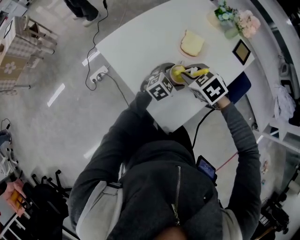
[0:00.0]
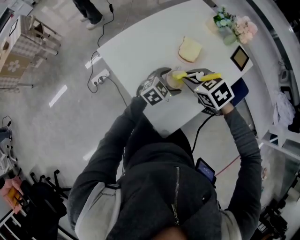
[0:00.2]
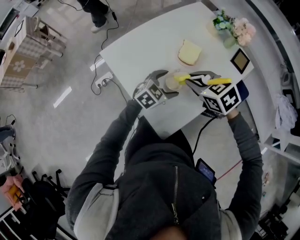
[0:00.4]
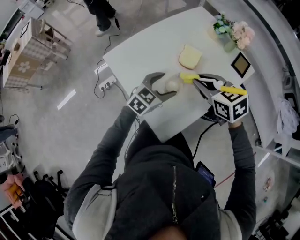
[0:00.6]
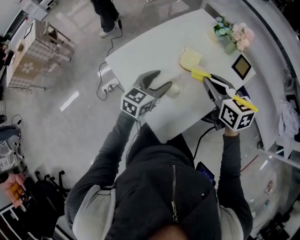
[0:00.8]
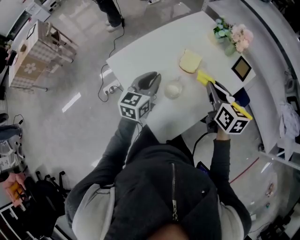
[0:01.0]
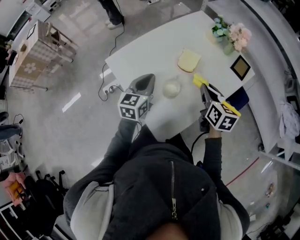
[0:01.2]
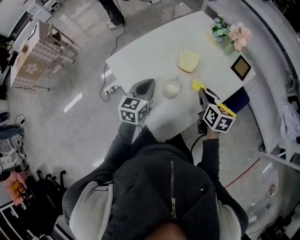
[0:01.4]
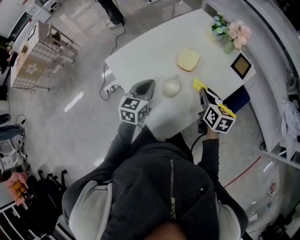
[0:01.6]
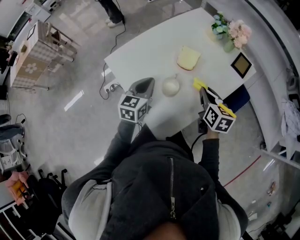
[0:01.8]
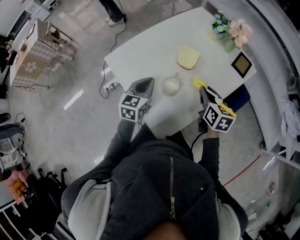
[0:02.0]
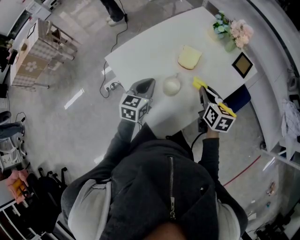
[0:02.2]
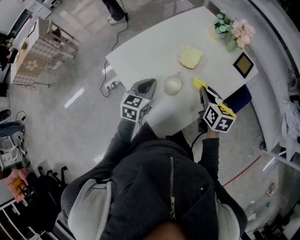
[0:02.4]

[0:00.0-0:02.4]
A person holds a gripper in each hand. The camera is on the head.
0:00.0 to 0:01.2: The left gripper is displaced upward and to the left by about 20 cm, rotates about 50 degrees, and closes its fingers, while the right gripper heads to the right and upward, covering roughly 15 cm, and points its fingers about 30 degrees further upward.
0:01.2 to 0:02.4: The grippers move only a little.

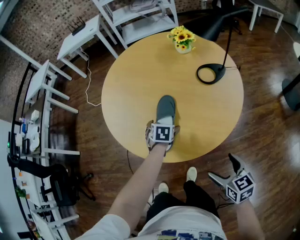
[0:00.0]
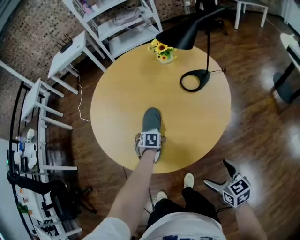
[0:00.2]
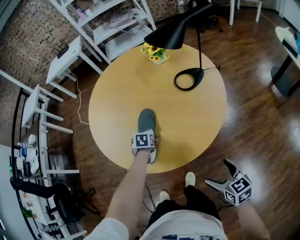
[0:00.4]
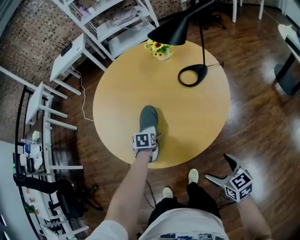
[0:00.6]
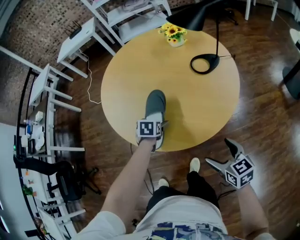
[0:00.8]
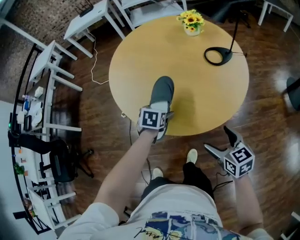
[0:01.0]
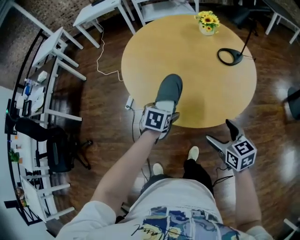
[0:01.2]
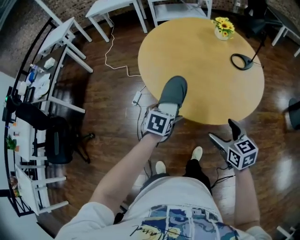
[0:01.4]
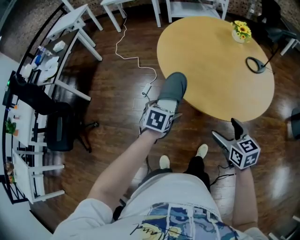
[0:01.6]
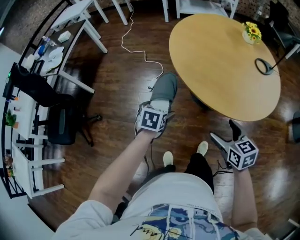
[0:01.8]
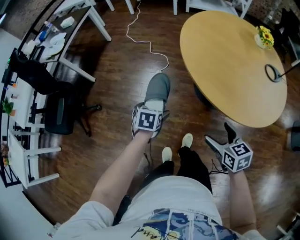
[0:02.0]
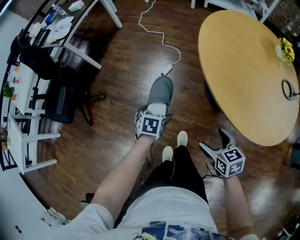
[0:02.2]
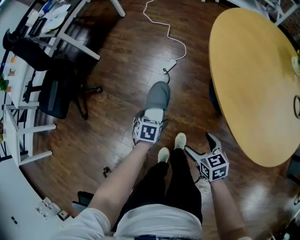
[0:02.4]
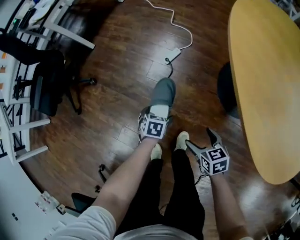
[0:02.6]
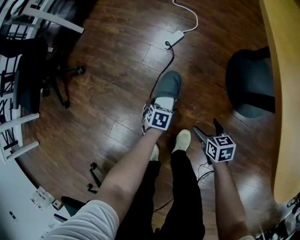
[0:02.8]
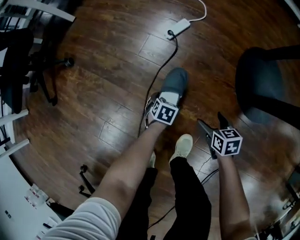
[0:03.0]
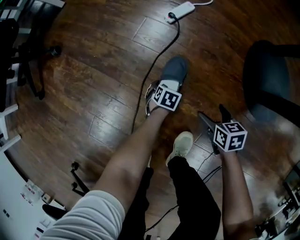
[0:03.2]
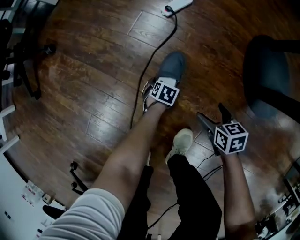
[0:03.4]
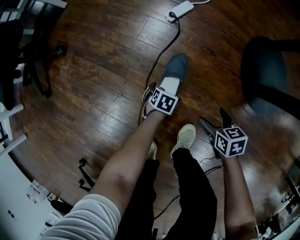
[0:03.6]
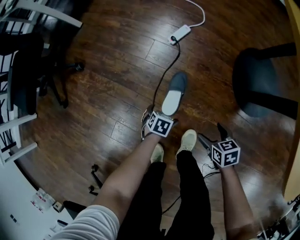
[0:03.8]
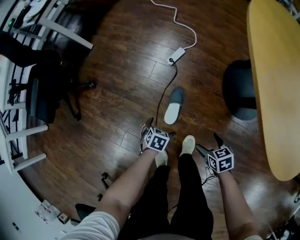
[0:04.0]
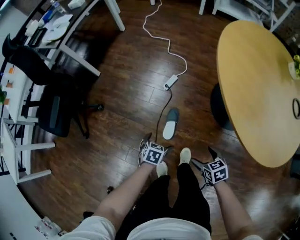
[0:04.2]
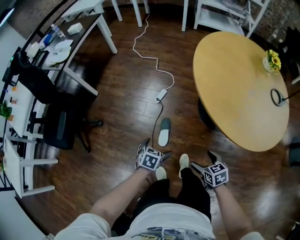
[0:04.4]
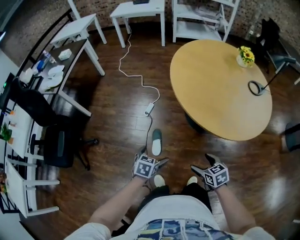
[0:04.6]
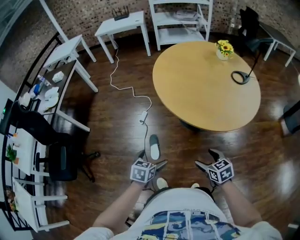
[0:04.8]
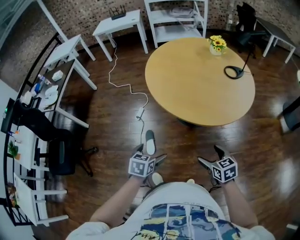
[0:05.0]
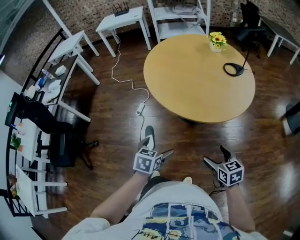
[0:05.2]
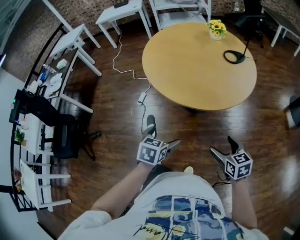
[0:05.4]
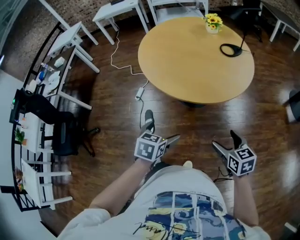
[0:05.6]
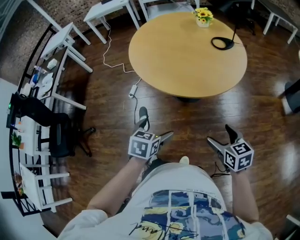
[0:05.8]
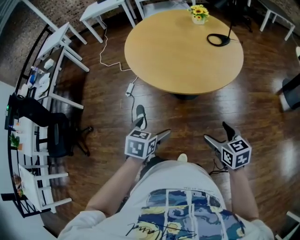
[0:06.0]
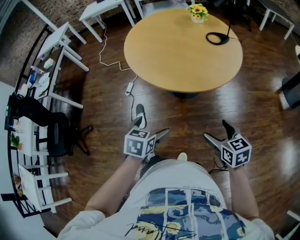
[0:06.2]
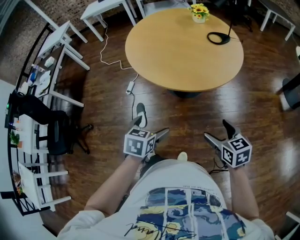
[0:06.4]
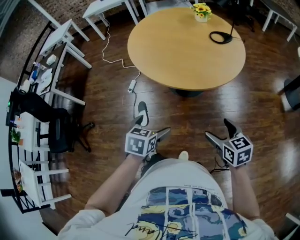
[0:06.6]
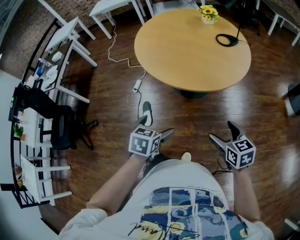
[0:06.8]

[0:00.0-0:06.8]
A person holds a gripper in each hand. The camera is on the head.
0:00.0 to 0:01.4: The left gripper moves backward, to the left and upward, some 30 cm; the right gripper is displaced to the left by some 20 cm.
0:01.4 to 0:02.8: The pair of grippers is taken roughly 40 cm. The grippers both shift downward by approximately 70 cm. The right gripper rotates approximately 30 degrees, while the left gripper rotates approximately 40 degrees.
0:02.8 to 0:04.0: The right gripper goes downward and returns, roughly 25 cm each way, while the left gripper goes downward and returns, some 30 cm each way.
0:04.0 to 0:05.4: The two grippers travel together, to the right and backward, approximately 50 cm. Both grippers move upward, roughly 50 cm. The right gripper rotates about 40 degrees. The left gripper rotates some 30 degrees.
0:05.4 to 0:06.8: The grippers stay close to where they were, moving slightly.

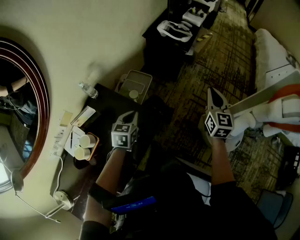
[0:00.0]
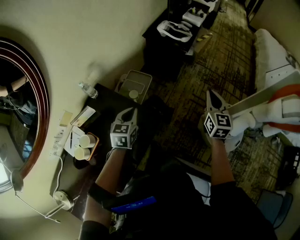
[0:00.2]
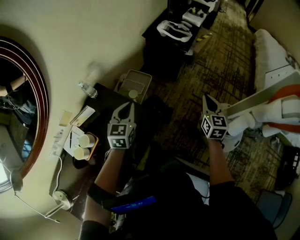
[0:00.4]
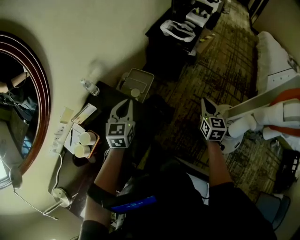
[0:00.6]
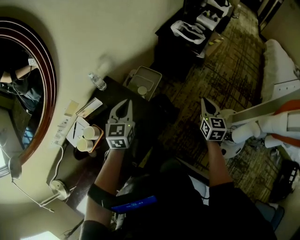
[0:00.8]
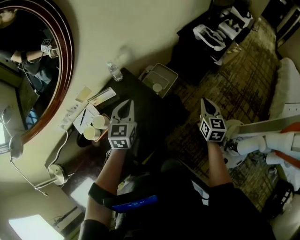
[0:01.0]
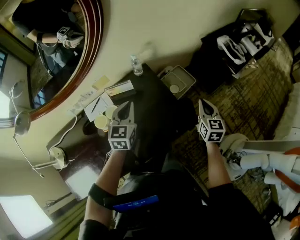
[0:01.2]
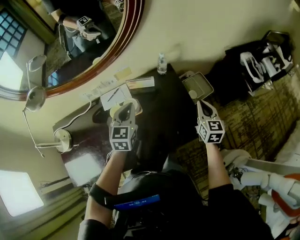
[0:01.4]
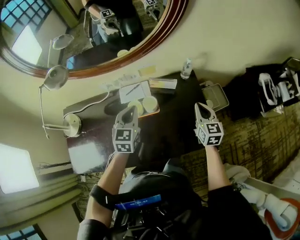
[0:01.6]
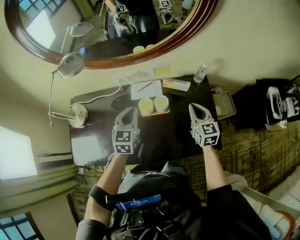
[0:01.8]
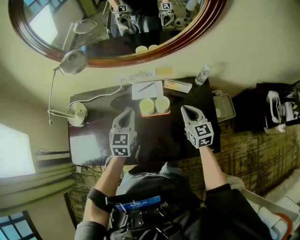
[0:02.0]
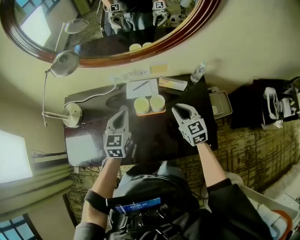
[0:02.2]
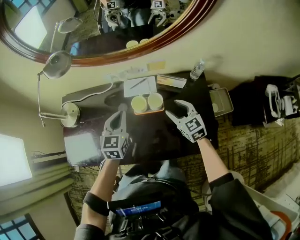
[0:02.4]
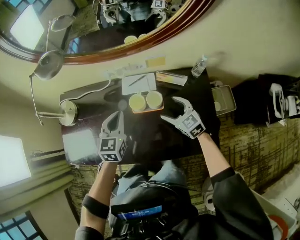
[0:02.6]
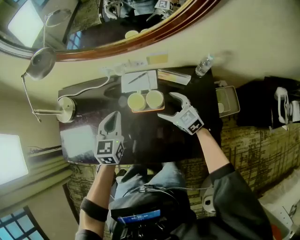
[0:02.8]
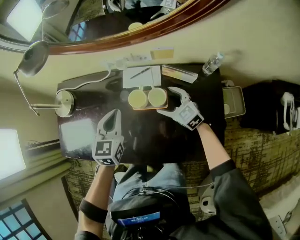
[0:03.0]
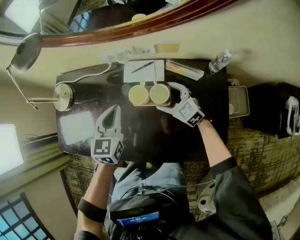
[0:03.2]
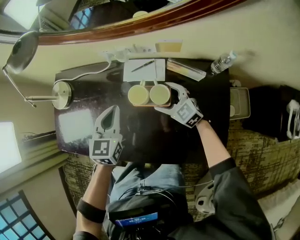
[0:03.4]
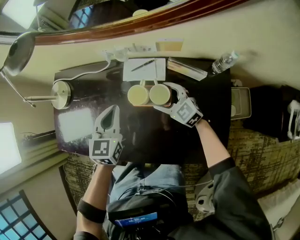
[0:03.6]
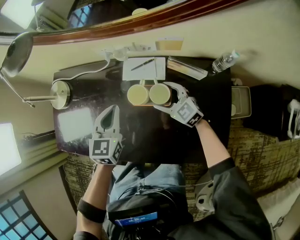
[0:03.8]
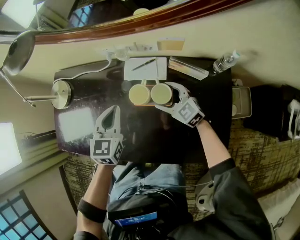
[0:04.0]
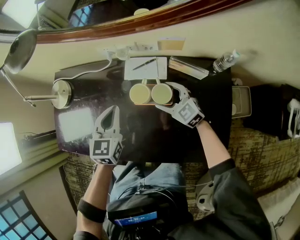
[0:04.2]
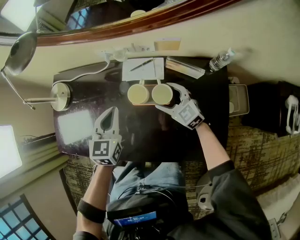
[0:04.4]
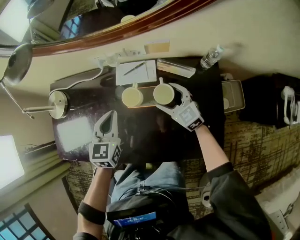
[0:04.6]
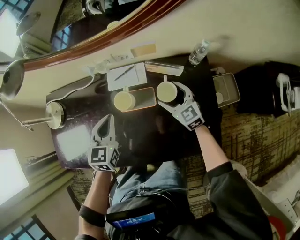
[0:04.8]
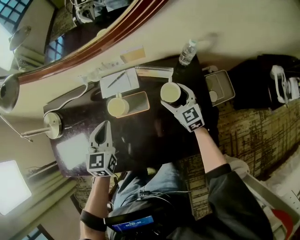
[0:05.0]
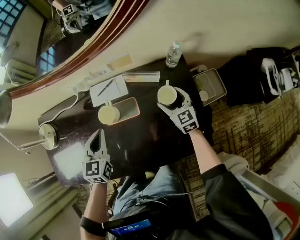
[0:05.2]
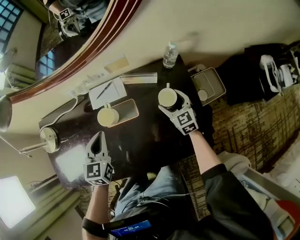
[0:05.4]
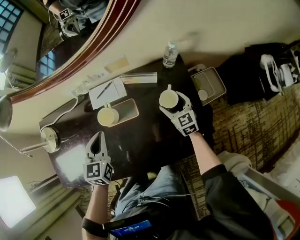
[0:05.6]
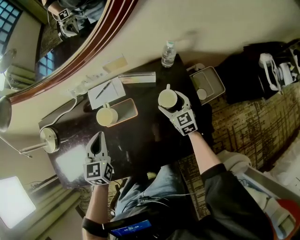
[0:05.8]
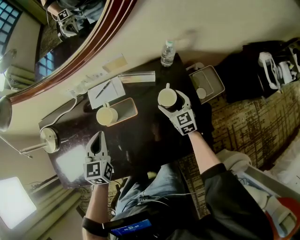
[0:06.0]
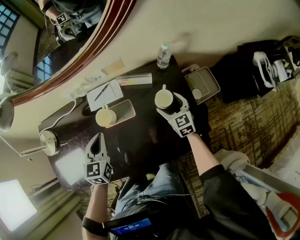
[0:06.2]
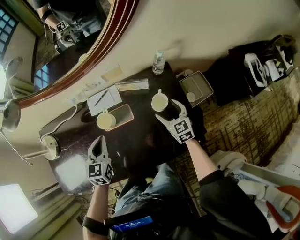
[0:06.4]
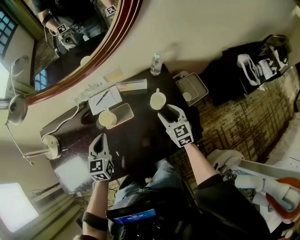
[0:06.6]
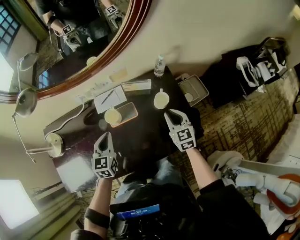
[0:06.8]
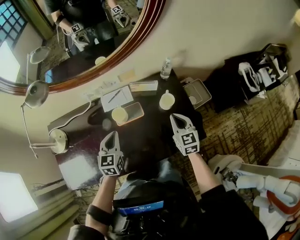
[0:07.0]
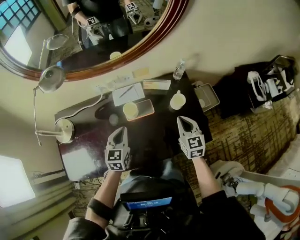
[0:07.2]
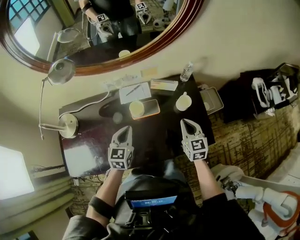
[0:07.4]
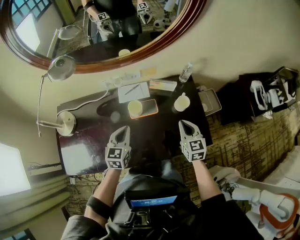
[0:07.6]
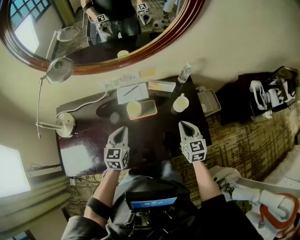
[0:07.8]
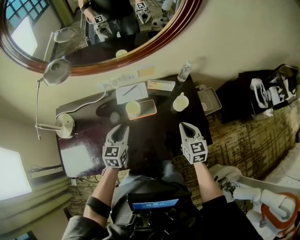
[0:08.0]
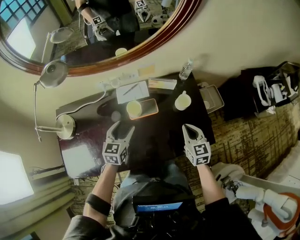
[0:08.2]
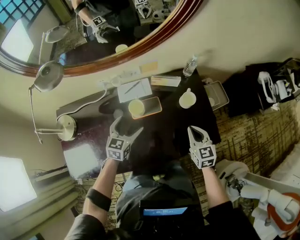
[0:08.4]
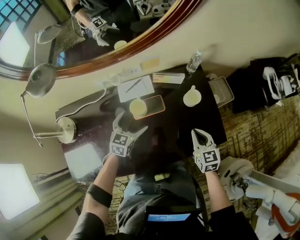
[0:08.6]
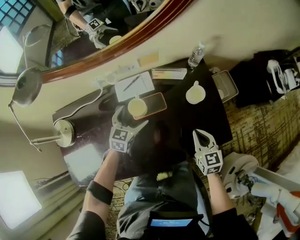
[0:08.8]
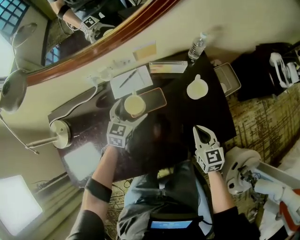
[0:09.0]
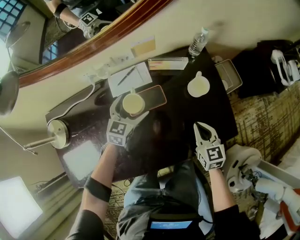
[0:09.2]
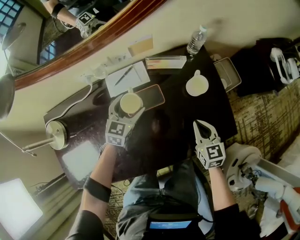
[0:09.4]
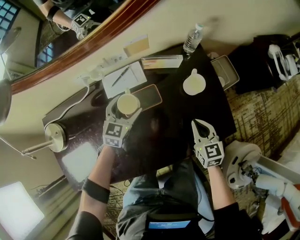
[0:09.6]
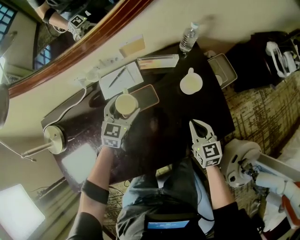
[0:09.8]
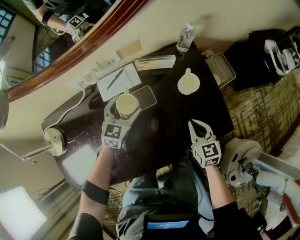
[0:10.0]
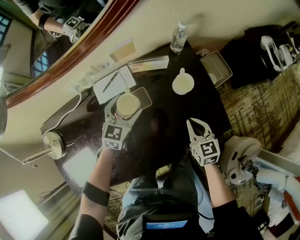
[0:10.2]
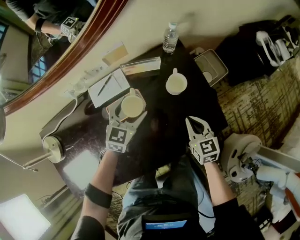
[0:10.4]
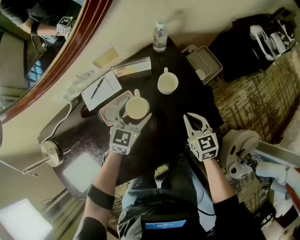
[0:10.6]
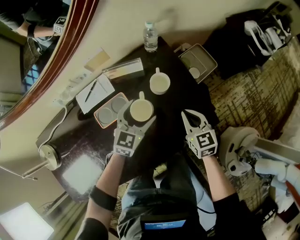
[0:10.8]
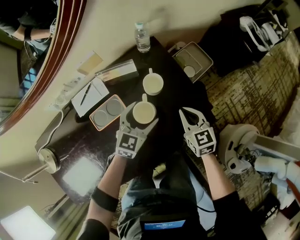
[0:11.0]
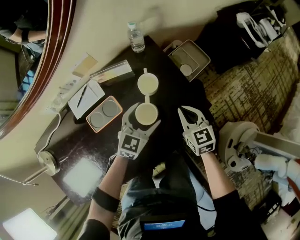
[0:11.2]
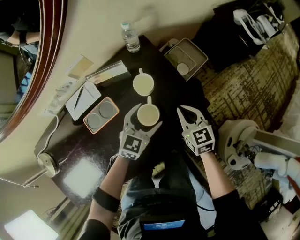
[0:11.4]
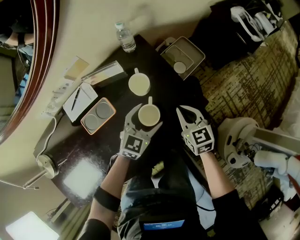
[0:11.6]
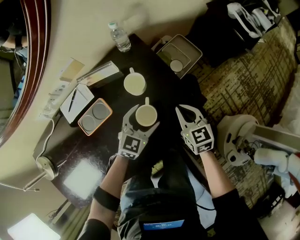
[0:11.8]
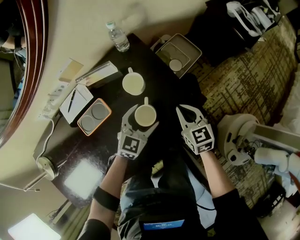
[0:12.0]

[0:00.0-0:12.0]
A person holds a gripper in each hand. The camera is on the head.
0:00.0 to 0:01.6: The right gripper shifts by roughly 50 cm, and rotates some 60 degrees; the left gripper shifts by roughly 40 cm, and rotates some 50 degrees.
0:01.6 to 0:03.0: The right gripper ends up some 30 cm from where it was, rotates some 60 degrees, and opens its fingers; the left gripper changes place by about 15 cm.
0:03.0 to 0:04.4: The grippers stay close to where they were, moving slightly.
0:04.4 to 0:06.0: The left gripper shifts by some 5 cm. The right gripper shifts by about 20 cm, and swivels about 40 degrees.
0:06.0 to 0:07.6: The left gripper heads backward, covering roughly 5 cm. The right gripper goes roughly 25 cm upward, backward and to the left, and closes up.
0:07.6 to 0:09.0: The left gripper shifts about 20 cm downward and forward, swivels approximately 20 degrees, and opens, while the right gripper goes some 10 cm downward.
0:09.0 to 0:10.4: The left gripper shifts some 10 cm to the right. Meanwhile the right gripper ends up some 5 cm from where it was.
0:10.4 to 0:12.0: The left gripper moves to the right, approximately 20 cm; the right gripper moves to the right, roughly 10 cm.

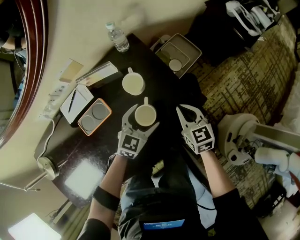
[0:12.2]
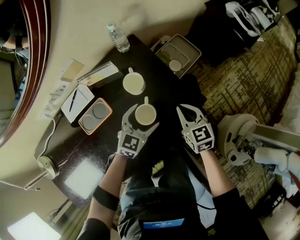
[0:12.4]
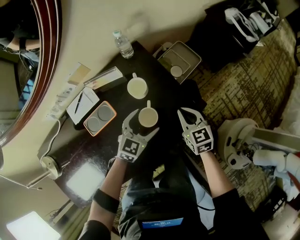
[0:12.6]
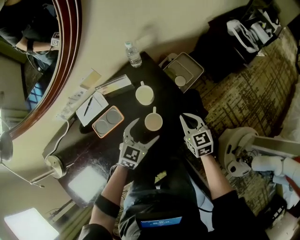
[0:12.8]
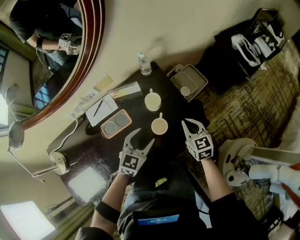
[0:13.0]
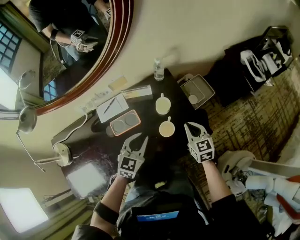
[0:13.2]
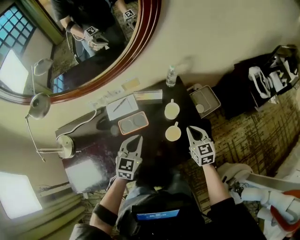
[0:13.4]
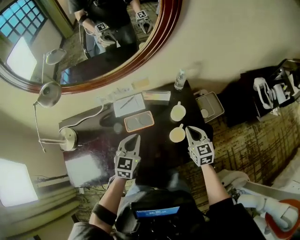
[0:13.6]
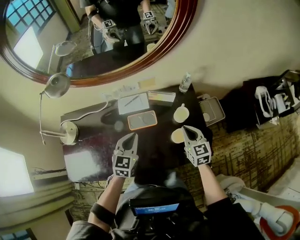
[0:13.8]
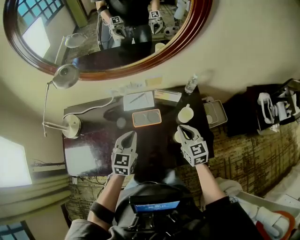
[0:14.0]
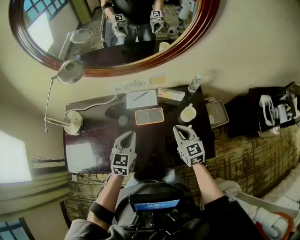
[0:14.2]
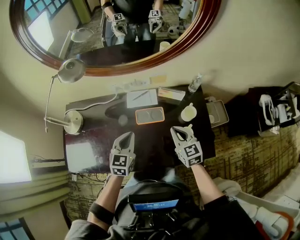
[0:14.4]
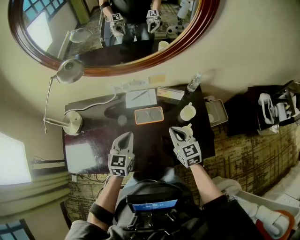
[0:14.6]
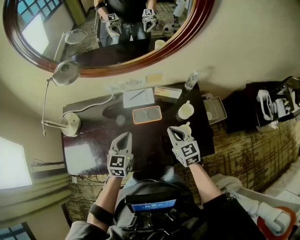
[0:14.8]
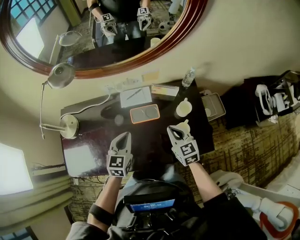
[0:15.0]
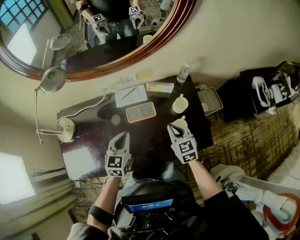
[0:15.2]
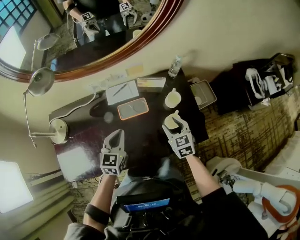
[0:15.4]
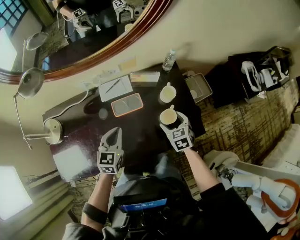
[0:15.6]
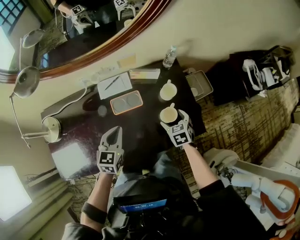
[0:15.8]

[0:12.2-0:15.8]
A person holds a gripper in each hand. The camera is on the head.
0:12.2 to 0:14.0: The left gripper moves some 35 cm, swivels roughly 50 degrees, and closes its fingers. The right gripper ends up about 25 cm from where it was, and rotates roughly 30 degrees.
0:14.0 to 0:15.8: The right gripper moves downward, roughly 15 cm, changes its angle by some 30 degrees, and opens up.
